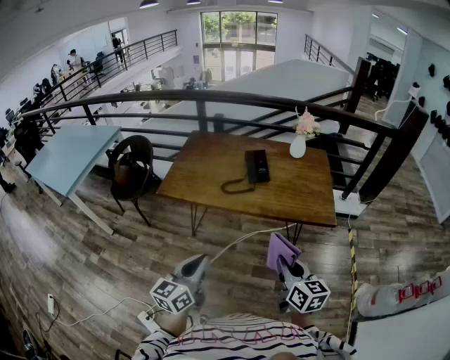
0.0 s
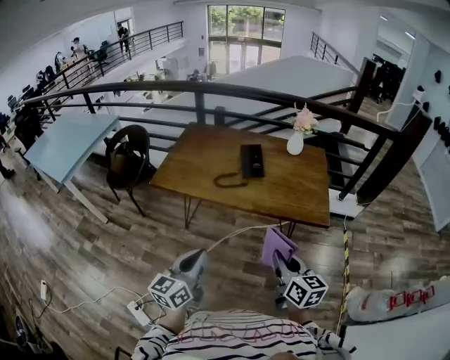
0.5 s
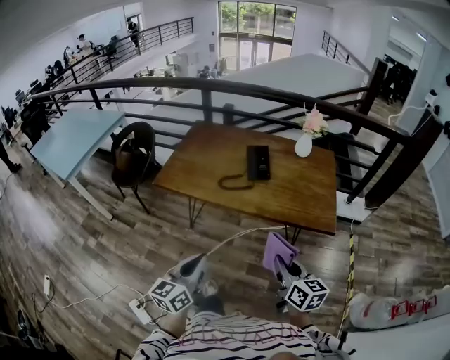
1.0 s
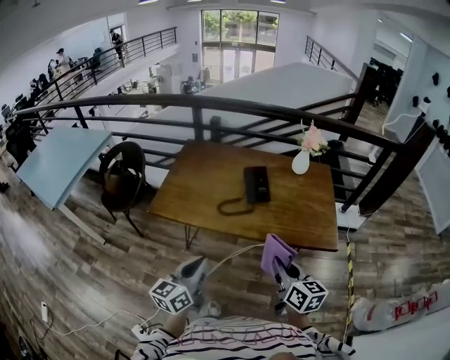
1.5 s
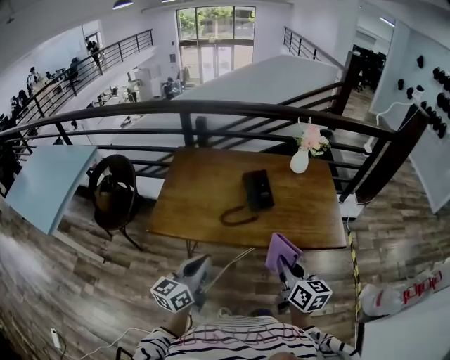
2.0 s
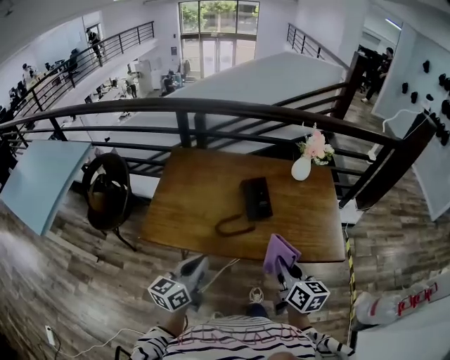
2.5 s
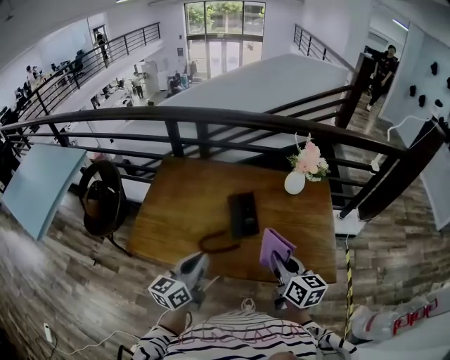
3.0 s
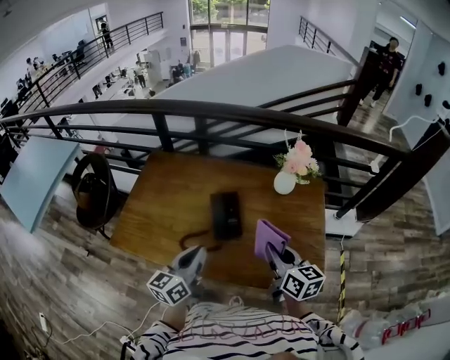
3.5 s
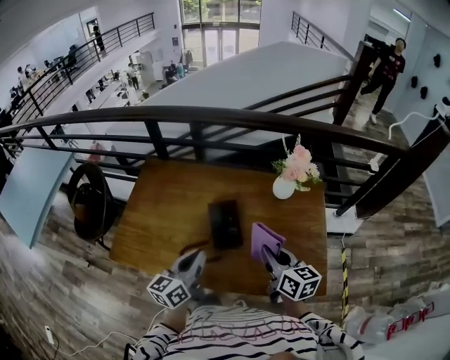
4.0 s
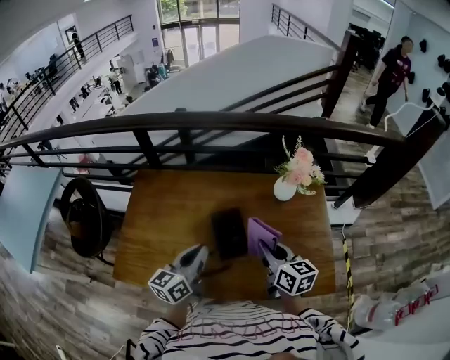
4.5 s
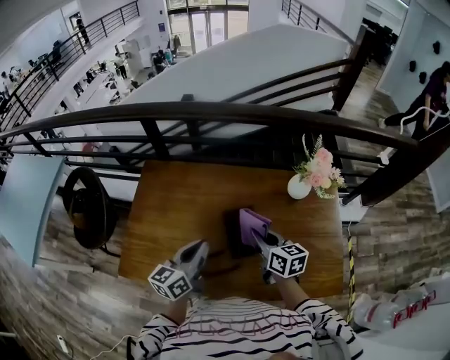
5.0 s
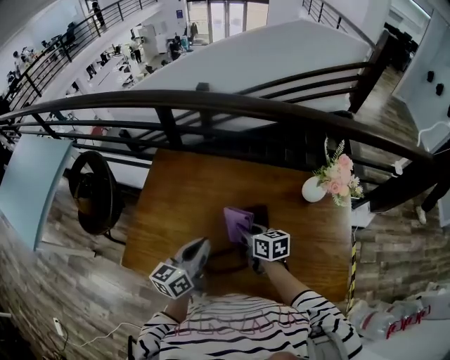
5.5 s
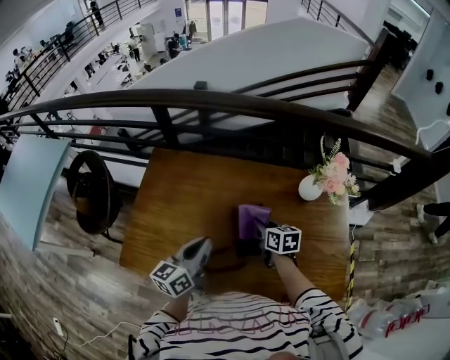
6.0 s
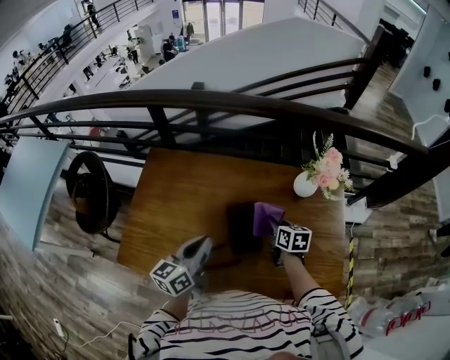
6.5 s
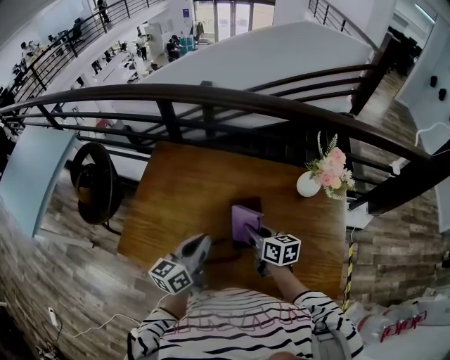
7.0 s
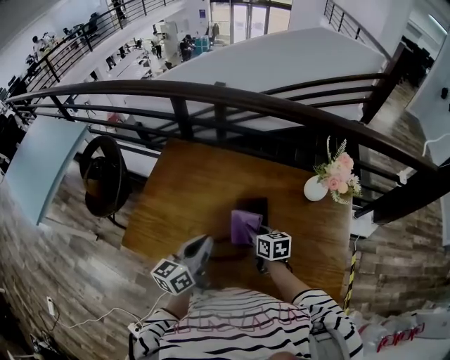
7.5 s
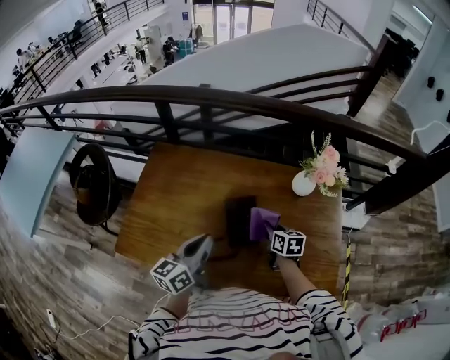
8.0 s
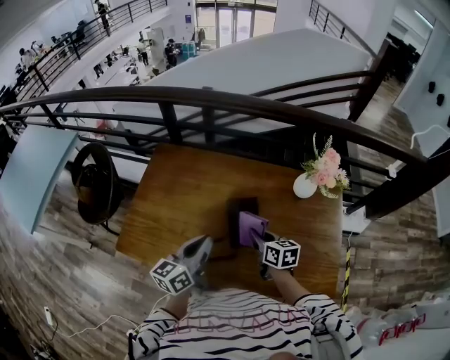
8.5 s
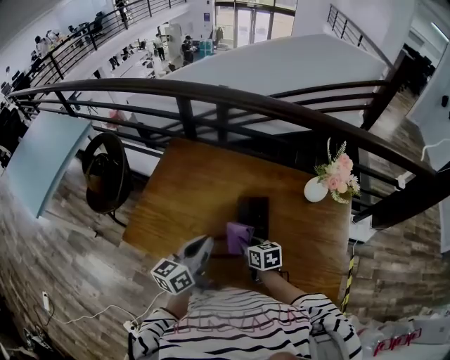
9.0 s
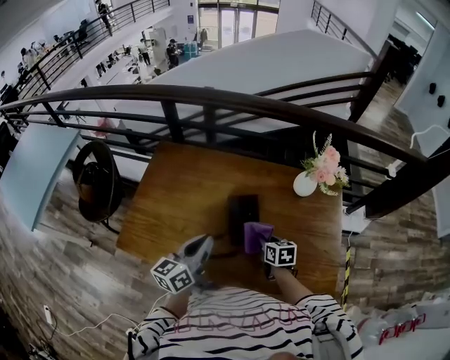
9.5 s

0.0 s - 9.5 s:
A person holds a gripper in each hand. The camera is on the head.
0.0 s - 2.0 s: The two grippers go approximately 25 cm forward.
2.0 s - 4.0 s: The left gripper heads forward and to the right, covering roughly 35 cm, while the right gripper is displaced forward by approximately 35 cm.
4.0 s - 5.5 s: The right gripper moves to the left, forward and downward, approximately 30 cm, and turns by some 20 degrees. The left gripper travels forward and to the left by about 20 cm.
5.5 s - 7.5 s: The grippers both shift backward by some 5 cm. The right gripper goes to the right and returns, some 15 cm each way.
7.5 s - 9.5 s: The right gripper swings left and right, roughly 15 cm each way, with 2 reversals.

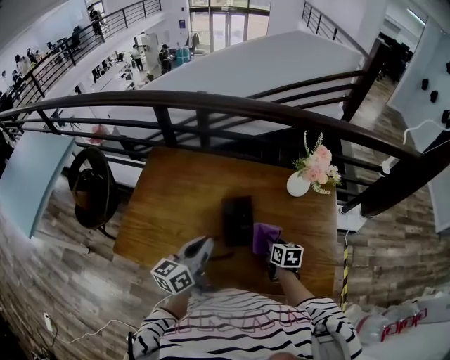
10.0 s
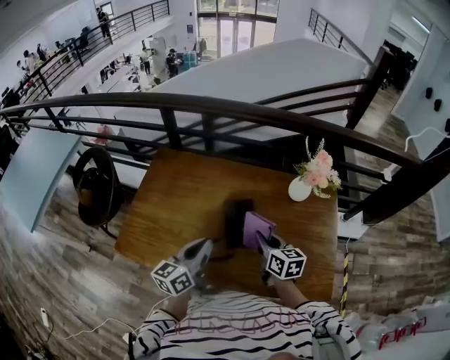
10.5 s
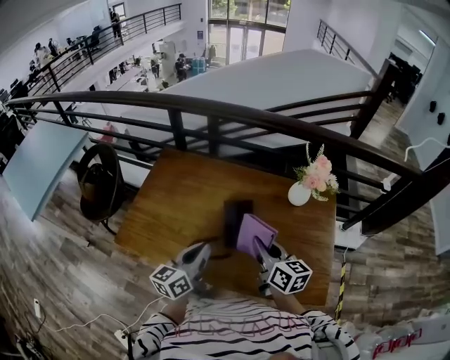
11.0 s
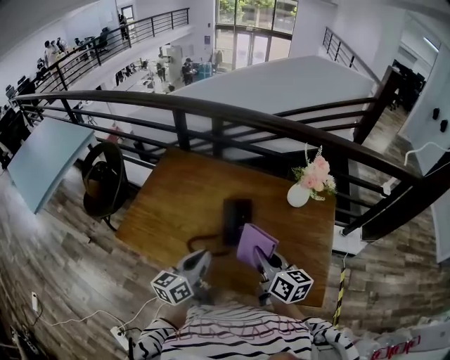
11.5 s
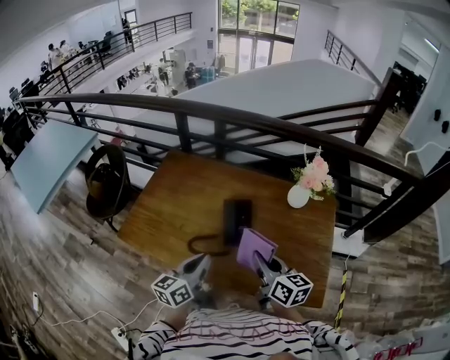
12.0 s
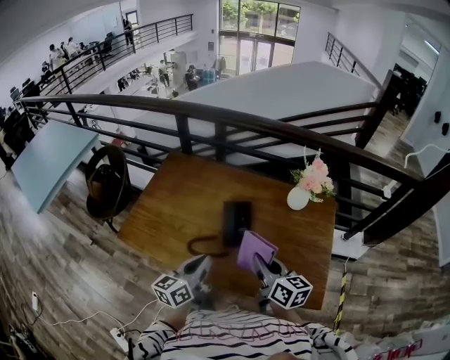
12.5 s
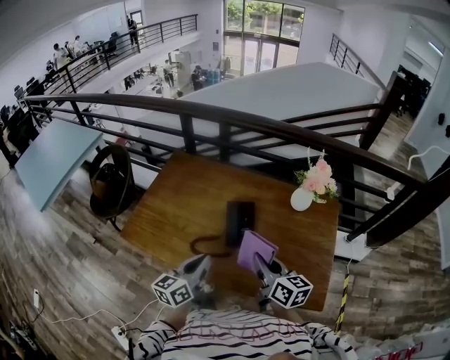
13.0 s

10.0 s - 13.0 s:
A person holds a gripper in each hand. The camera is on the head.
10.0 s - 11.5 s: The left gripper travels backward by approximately 10 cm. Meanwhile the right gripper heads upward and backward, covering about 25 cm, and angles its fingers upward, by some 30 degrees.
11.5 s - 13.0 s: The grippers stay close to where they were, moving slightly.

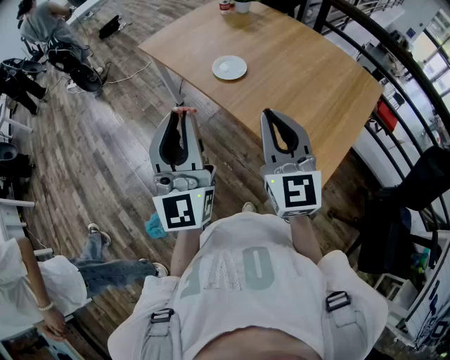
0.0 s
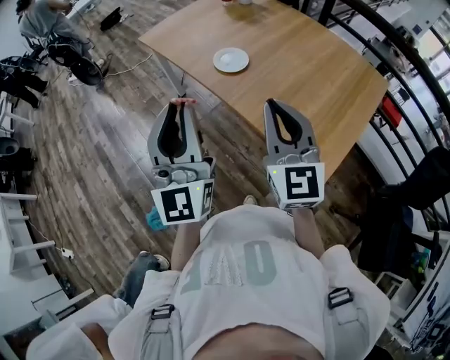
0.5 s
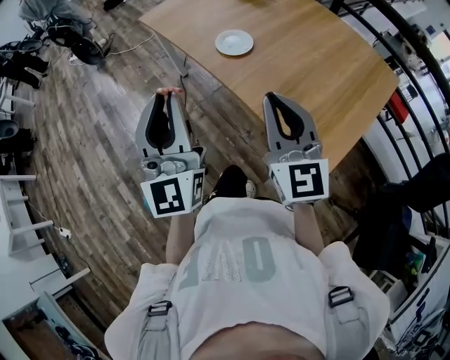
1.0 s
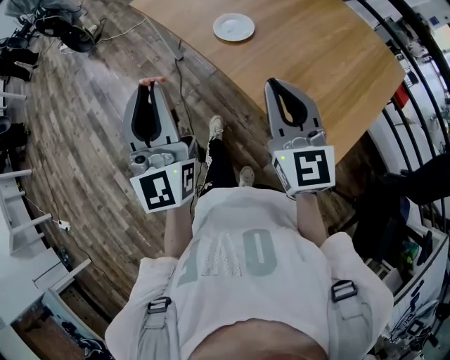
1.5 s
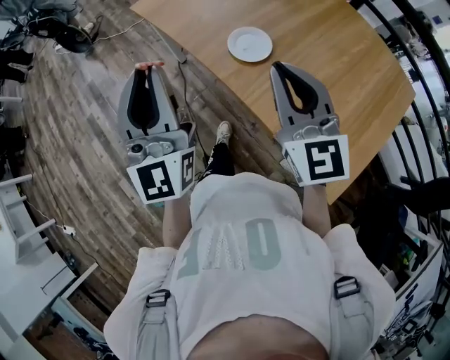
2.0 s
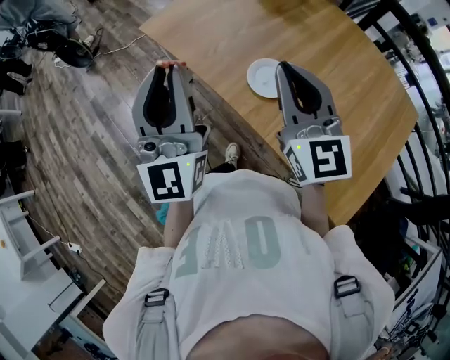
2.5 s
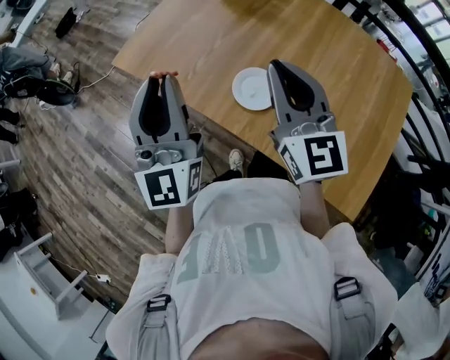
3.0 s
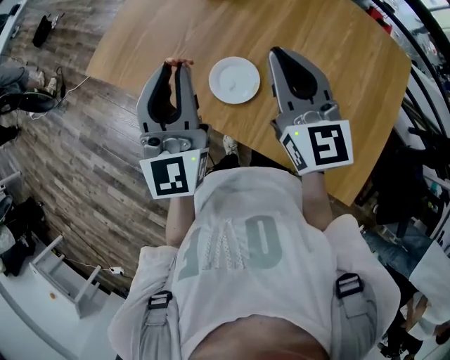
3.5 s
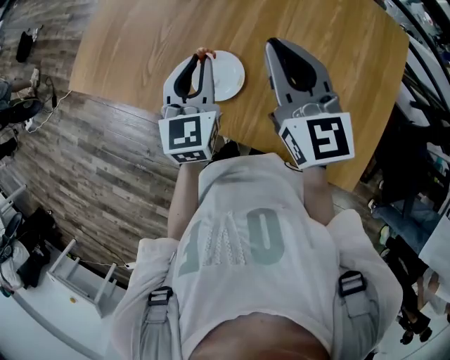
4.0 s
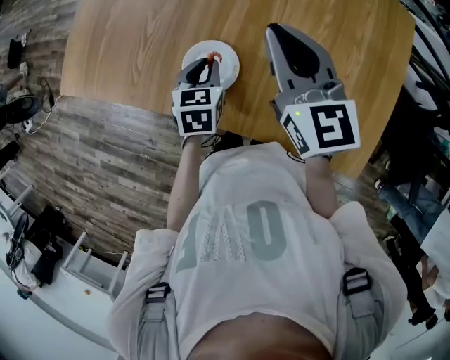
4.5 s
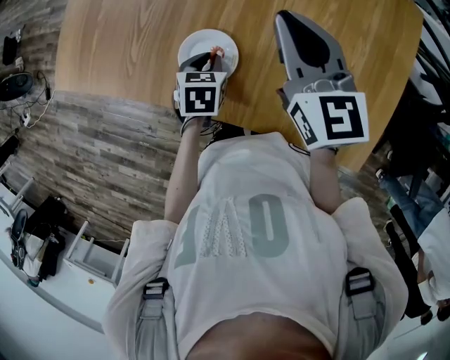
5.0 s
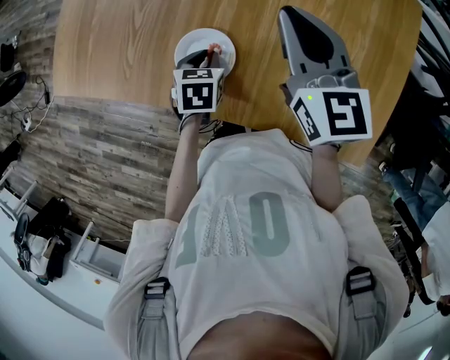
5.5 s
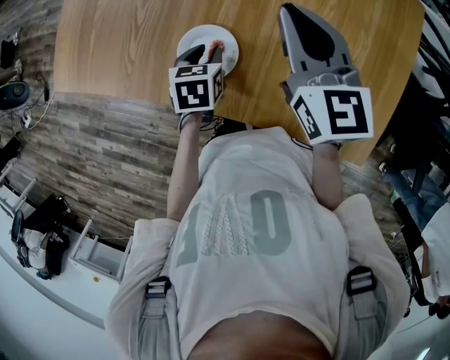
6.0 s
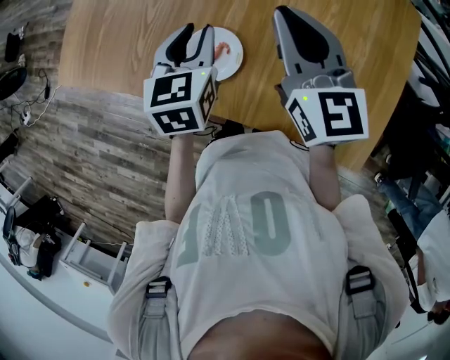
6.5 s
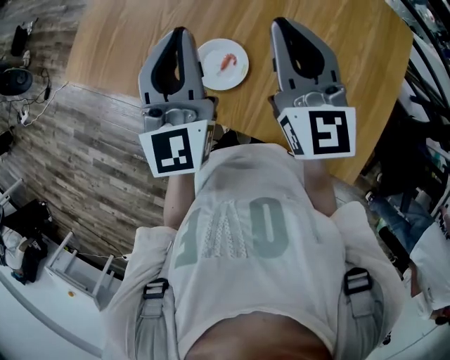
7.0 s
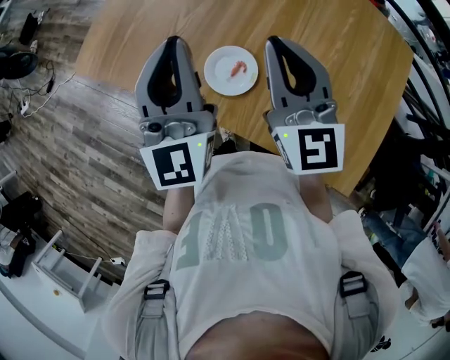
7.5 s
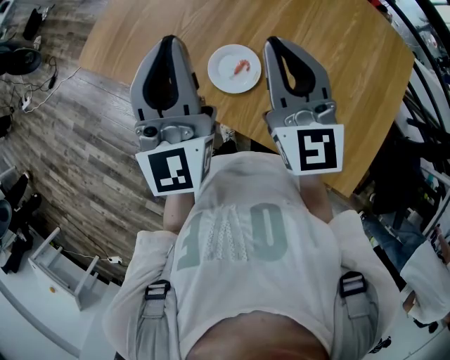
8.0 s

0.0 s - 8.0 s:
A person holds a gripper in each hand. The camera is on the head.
0.0 s - 2.0 s: The grippers both shift forward by approximately 20 cm.
2.0 s - 4.0 s: The left gripper changes place by about 35 cm, and tips its fingers downward by roughly 40 degrees, while the right gripper changes place by approximately 20 cm, and rotates about 30 degrees.
4.0 s - 6.0 s: The left gripper shifts some 15 cm downward, and tilts its fingers about 40 degrees downward. The right gripper shifts by about 5 cm.
6.0 s - 8.0 s: The right gripper moves to the left and upward, approximately 15 cm. The left gripper shifts about 35 cm upward, points its fingers some 70 degrees further upward, and closes its fingers.

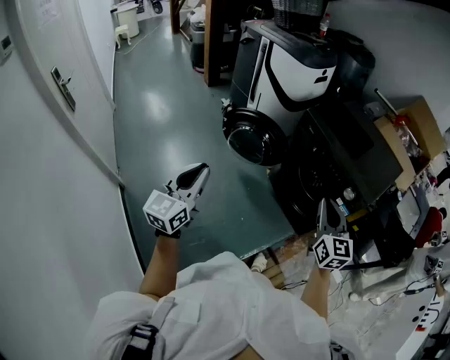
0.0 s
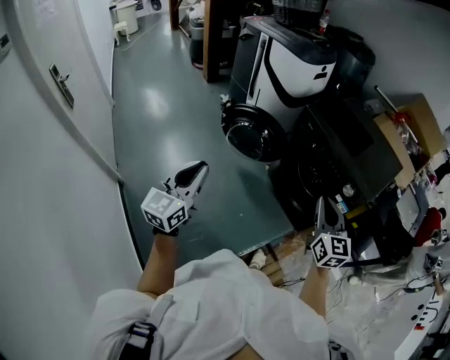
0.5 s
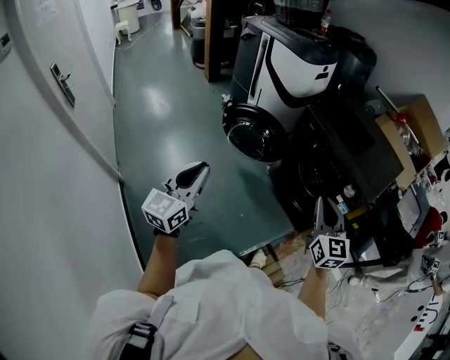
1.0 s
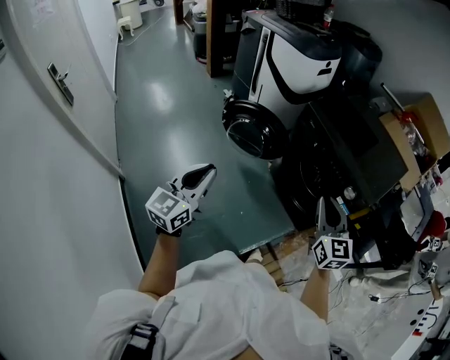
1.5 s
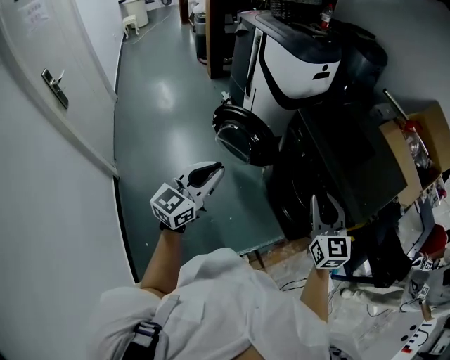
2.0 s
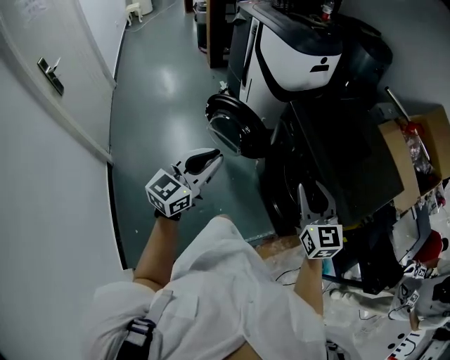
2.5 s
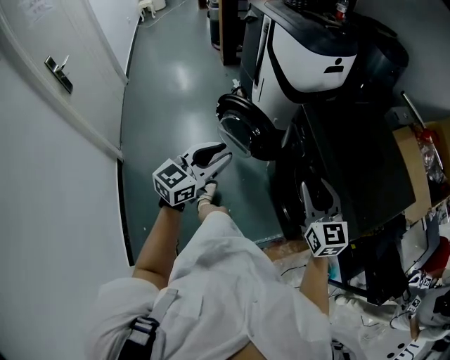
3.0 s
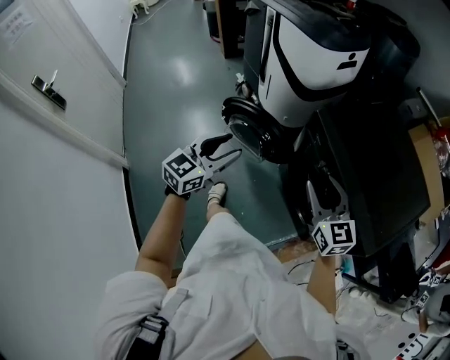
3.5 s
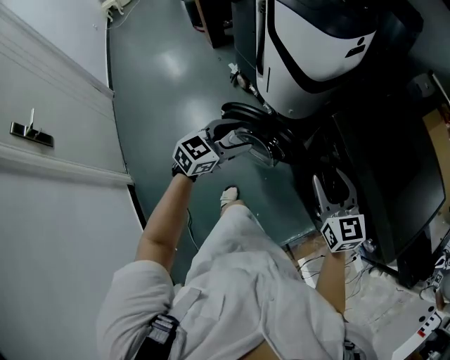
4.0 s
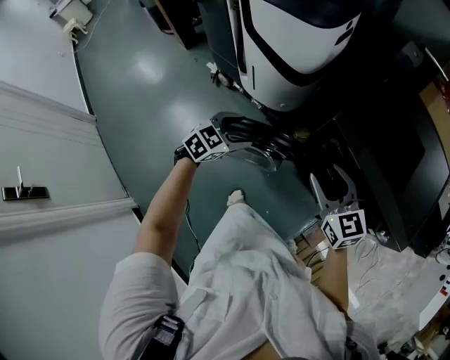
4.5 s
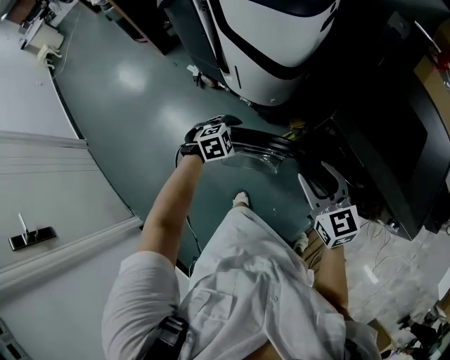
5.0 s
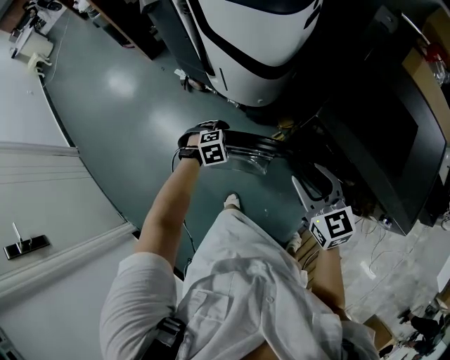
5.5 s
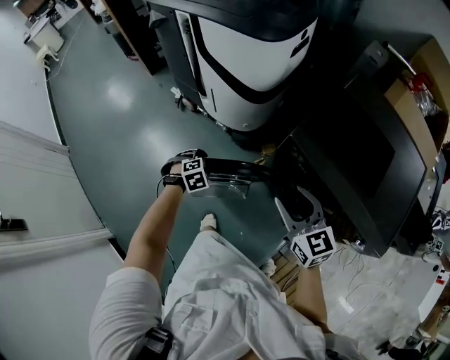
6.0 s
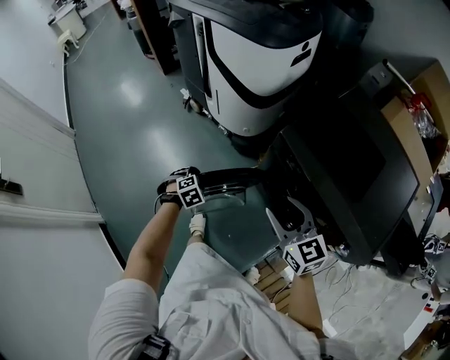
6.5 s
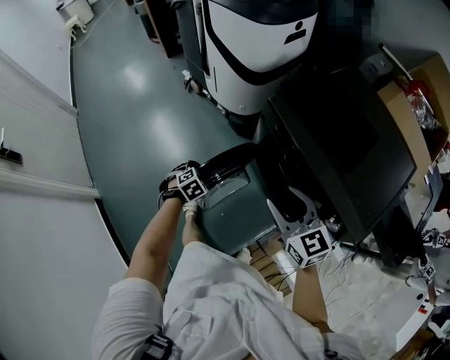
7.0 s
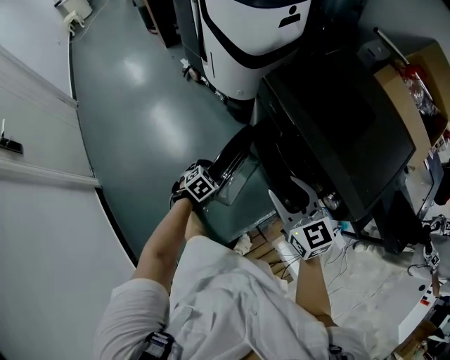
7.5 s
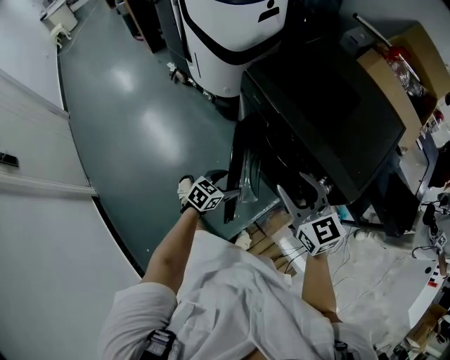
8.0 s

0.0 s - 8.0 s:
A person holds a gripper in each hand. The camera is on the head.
0.0 s - 2.0 s: The right gripper travels forward and to the right by approximately 15 cm. Meanwhile the left gripper travels to the right and forward by some 20 cm.
2.0 s - 4.0 s: The right gripper goes about 30 cm forward and to the left, and opens, while the left gripper is displaced forward by about 35 cm, turns by approximately 30 degrees, and opens its fingers.
4.0 s - 6.0 s: The left gripper travels downward by about 25 cm, and angles its fingers downward, by about 50 degrees.
6.0 s - 8.0 s: The right gripper ends up about 25 cm from where it was; the left gripper ends up roughly 40 cm from where it was, and angles its fingers upward, by roughly 40 degrees.
